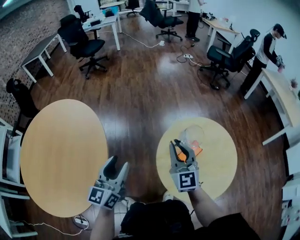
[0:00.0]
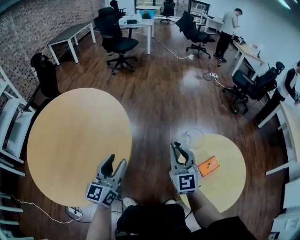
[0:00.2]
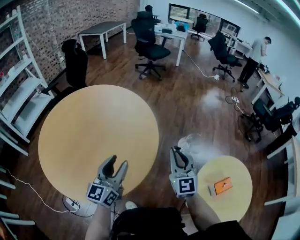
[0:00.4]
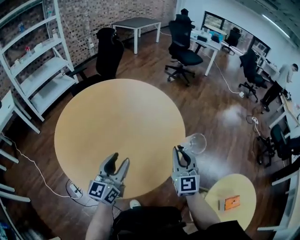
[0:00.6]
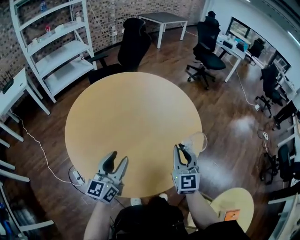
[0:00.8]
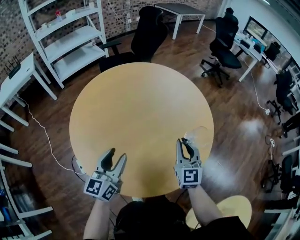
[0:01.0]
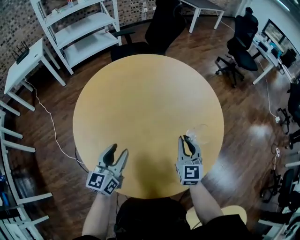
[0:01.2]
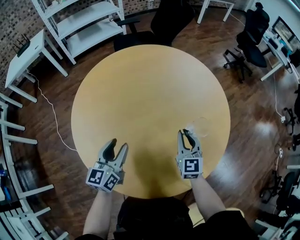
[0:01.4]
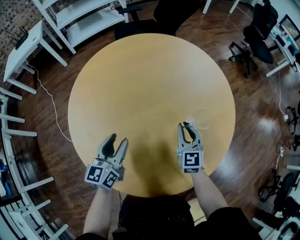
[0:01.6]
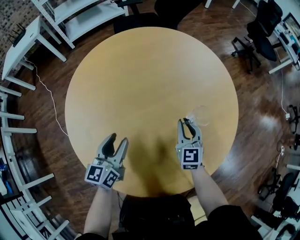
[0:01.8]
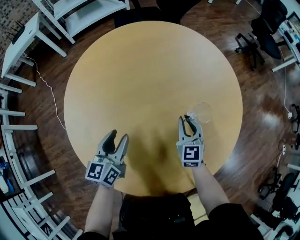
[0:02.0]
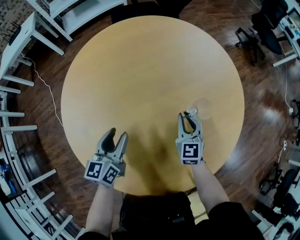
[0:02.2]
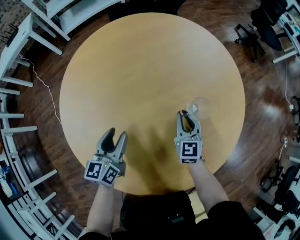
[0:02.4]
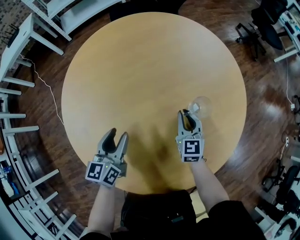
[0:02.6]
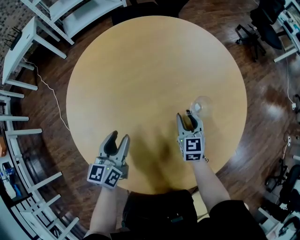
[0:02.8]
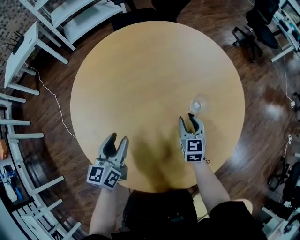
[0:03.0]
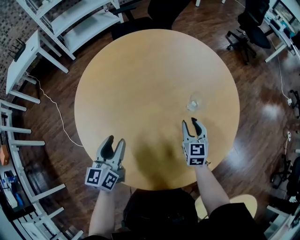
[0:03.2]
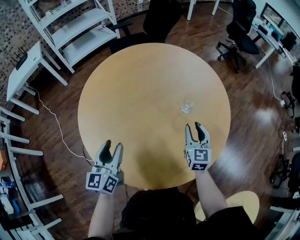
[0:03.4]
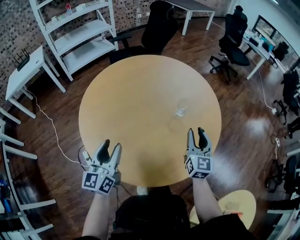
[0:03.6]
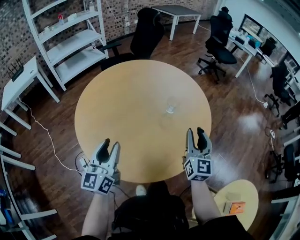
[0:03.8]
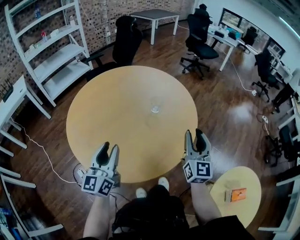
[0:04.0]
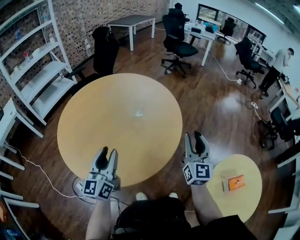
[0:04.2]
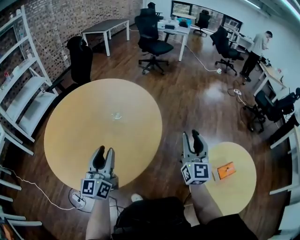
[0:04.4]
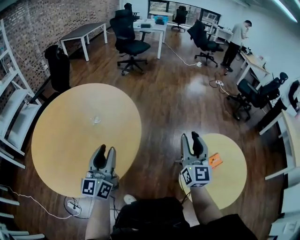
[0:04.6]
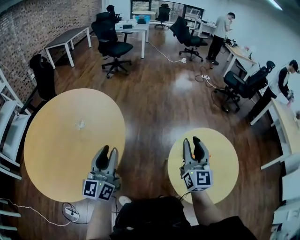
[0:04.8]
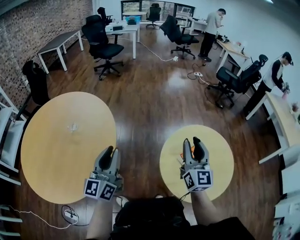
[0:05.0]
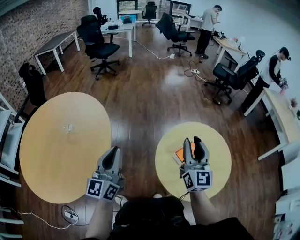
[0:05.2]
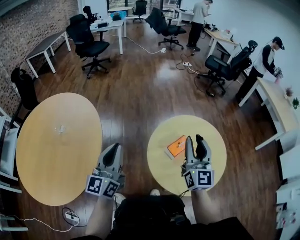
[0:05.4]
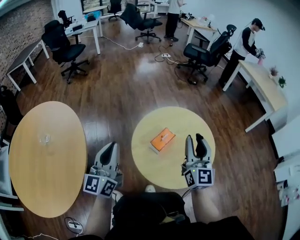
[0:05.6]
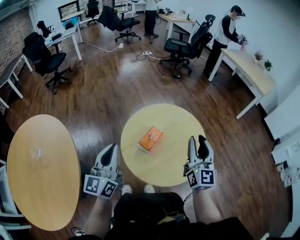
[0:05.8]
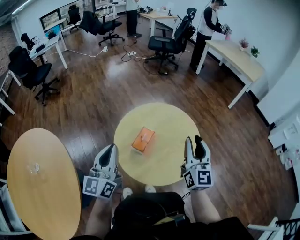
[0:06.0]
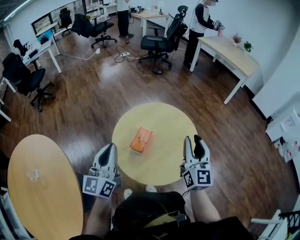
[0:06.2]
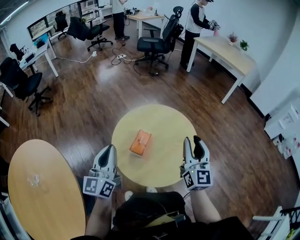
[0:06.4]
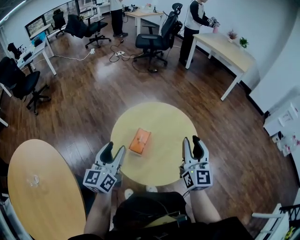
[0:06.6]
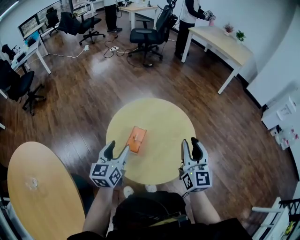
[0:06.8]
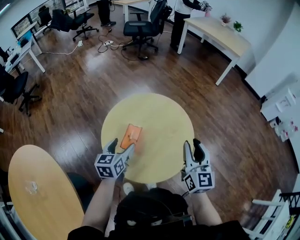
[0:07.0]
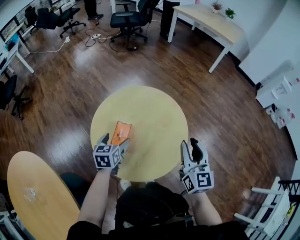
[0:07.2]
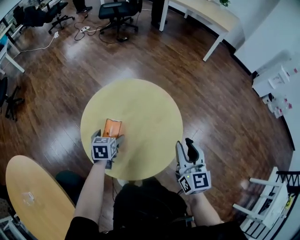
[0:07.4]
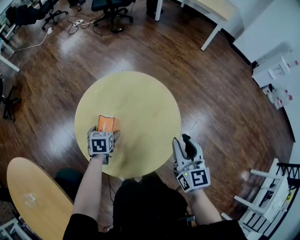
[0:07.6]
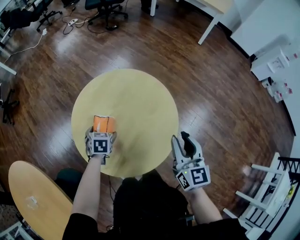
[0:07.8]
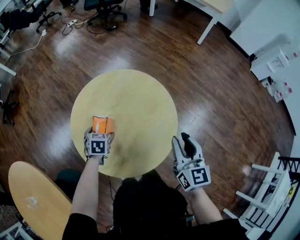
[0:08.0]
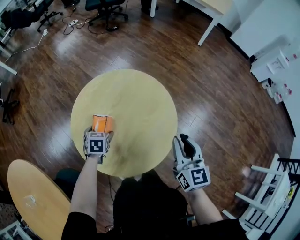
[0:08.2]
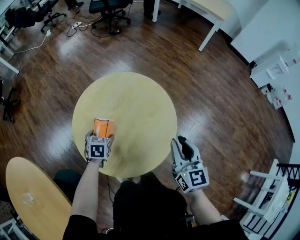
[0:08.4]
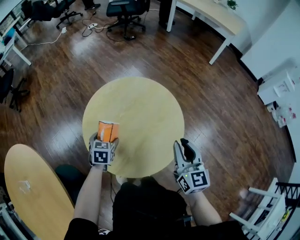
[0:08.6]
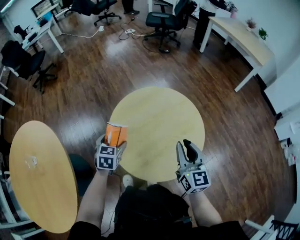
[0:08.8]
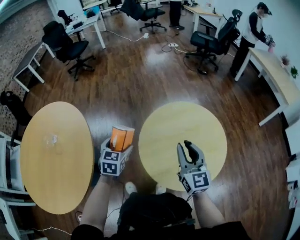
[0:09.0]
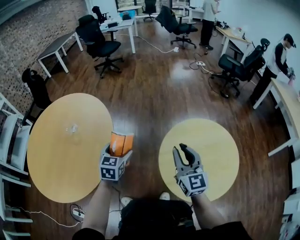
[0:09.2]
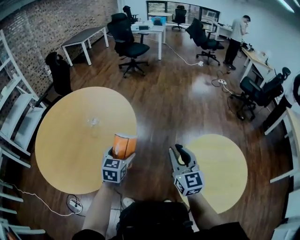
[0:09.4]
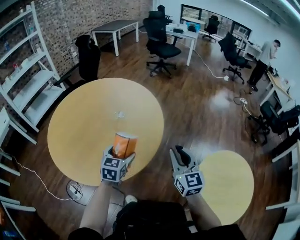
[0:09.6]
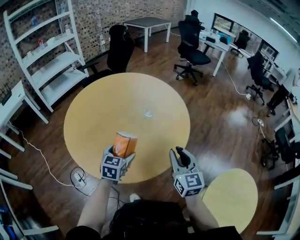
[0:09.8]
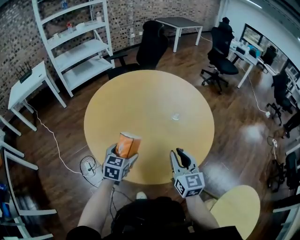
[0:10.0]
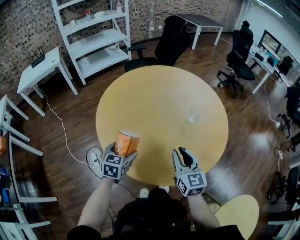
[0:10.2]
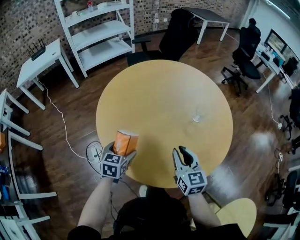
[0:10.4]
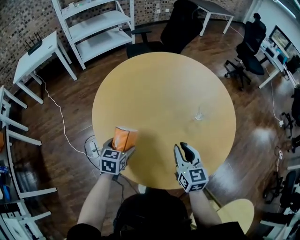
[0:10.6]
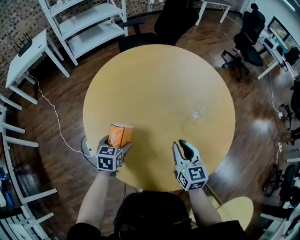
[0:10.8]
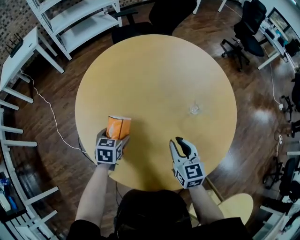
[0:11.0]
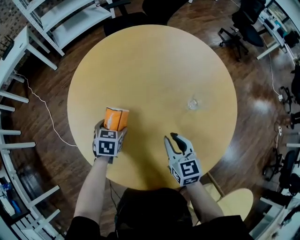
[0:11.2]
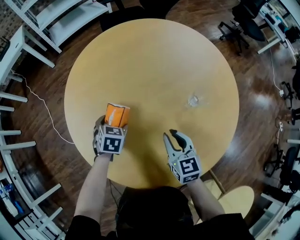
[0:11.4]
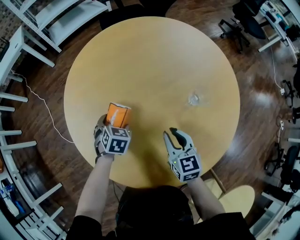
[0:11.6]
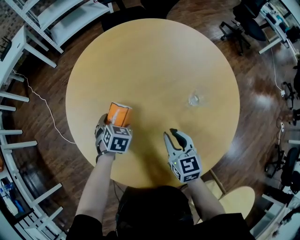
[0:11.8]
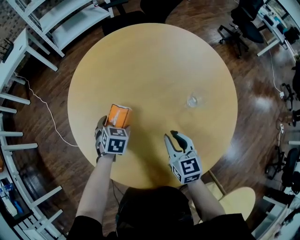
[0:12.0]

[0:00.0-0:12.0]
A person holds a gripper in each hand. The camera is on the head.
0.0 to 1.6 s: Both grippers are carried some 70 cm. The right gripper rotates about 60 degrees. Meanwhile the left gripper rotates about 70 degrees.
1.6 to 3.0 s: The right gripper moves downward, some 5 cm.
3.0 to 4.4 s: The right gripper shifts by about 50 cm, and points its fingers some 40 degrees further upward; the left gripper changes place by roughly 30 cm, and turns by some 40 degrees.
4.4 to 6.0 s: The pair of grippers is taken some 50 cm. The right gripper swivels roughly 50 degrees. Meanwhile the left gripper turns by about 60 degrees.
6.0 to 7.6 s: The right gripper travels downward and to the right by about 15 cm, and turns by about 20 degrees; the left gripper is displaced downward and forward by about 35 cm, angles its fingers downward, by approximately 60 degrees, and opens its fingers.
7.6 to 9.0 s: The left gripper changes place by some 30 cm, and changes its angle by some 30 degrees. The right gripper ends up approximately 20 cm from where it was, and swivels about 40 degrees.
9.0 to 10.4 s: The pair of grippers is taken approximately 70 cm. The left gripper swivels roughly 70 degrees, while the right gripper changes its angle by about 70 degrees.
10.4 to 12.0 s: The left gripper travels forward, downward and to the right by roughly 20 cm, and turns by roughly 20 degrees. The right gripper shifts approximately 15 cm downward and forward.

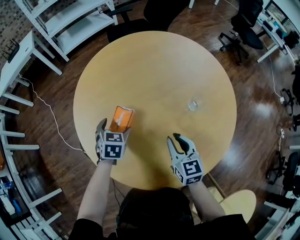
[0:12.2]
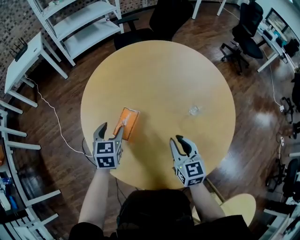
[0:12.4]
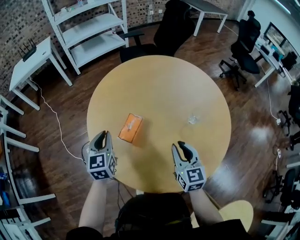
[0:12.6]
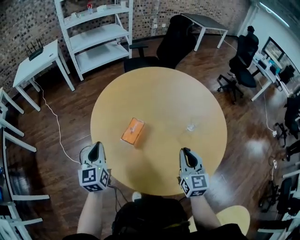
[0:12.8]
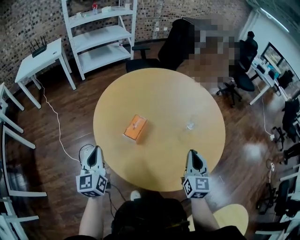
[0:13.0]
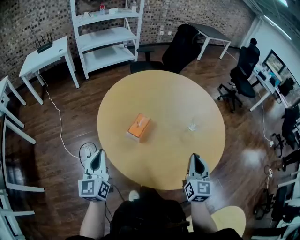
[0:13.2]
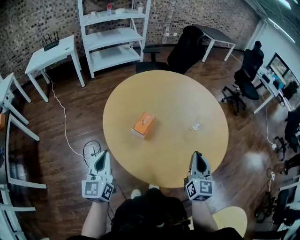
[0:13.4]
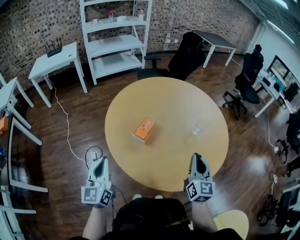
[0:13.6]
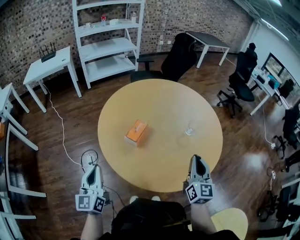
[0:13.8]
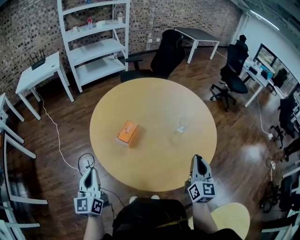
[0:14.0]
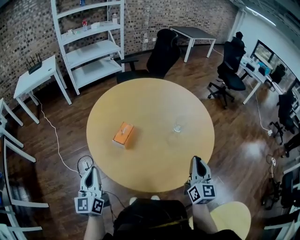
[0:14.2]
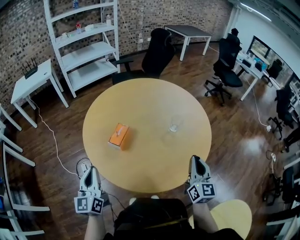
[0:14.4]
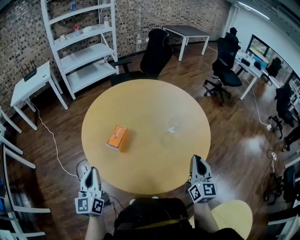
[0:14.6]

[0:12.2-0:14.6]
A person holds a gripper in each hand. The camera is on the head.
12.2 to 13.4 s: The left gripper is displaced backward, upward and to the left by roughly 35 cm, angles its fingers upward, by approximately 50 degrees, and closes up, while the right gripper shifts about 20 cm upward and backward, and changes its angle by about 20 degrees.
13.4 to 14.6 s: The left gripper heads to the right, covering approximately 5 cm; the right gripper goes about 15 cm to the right.

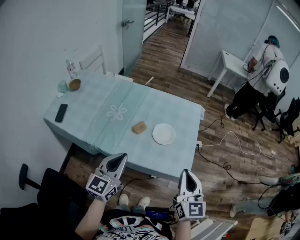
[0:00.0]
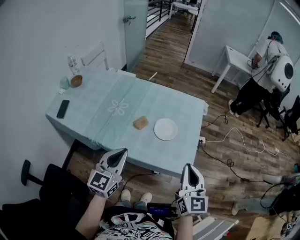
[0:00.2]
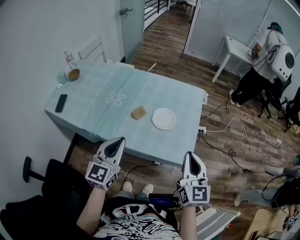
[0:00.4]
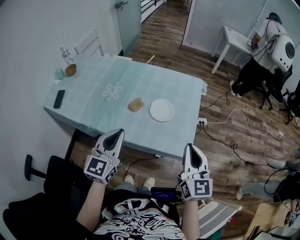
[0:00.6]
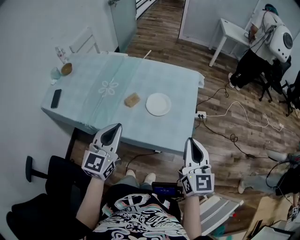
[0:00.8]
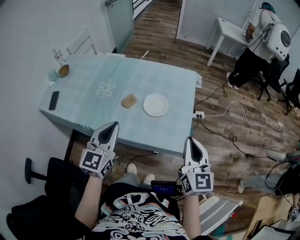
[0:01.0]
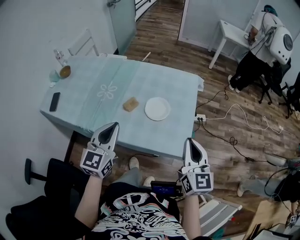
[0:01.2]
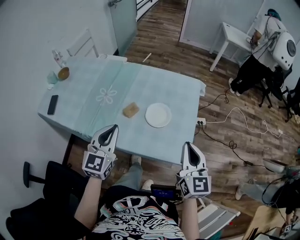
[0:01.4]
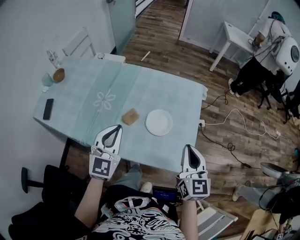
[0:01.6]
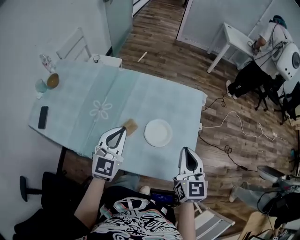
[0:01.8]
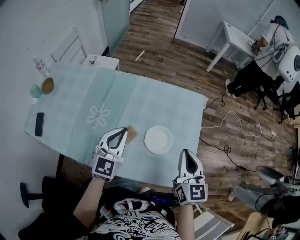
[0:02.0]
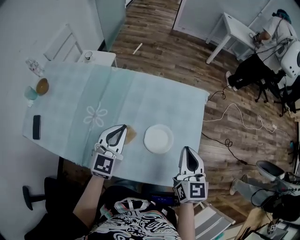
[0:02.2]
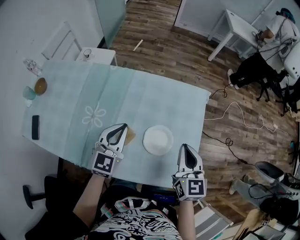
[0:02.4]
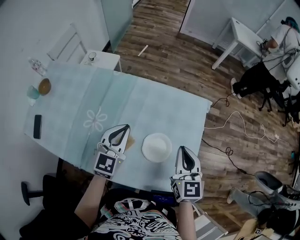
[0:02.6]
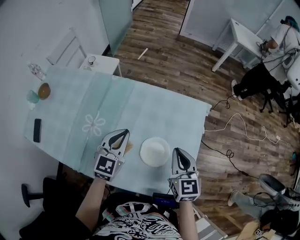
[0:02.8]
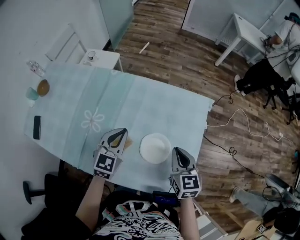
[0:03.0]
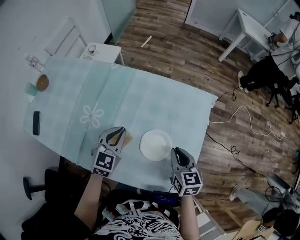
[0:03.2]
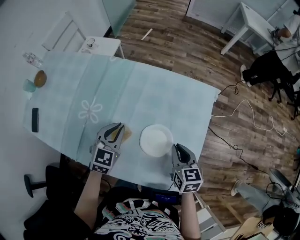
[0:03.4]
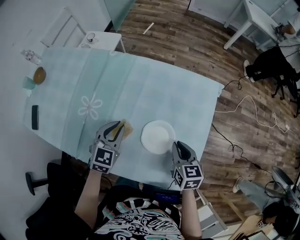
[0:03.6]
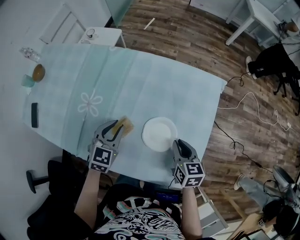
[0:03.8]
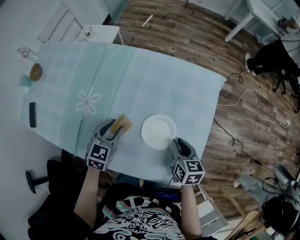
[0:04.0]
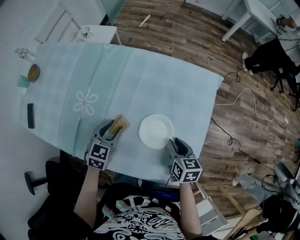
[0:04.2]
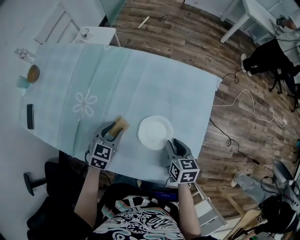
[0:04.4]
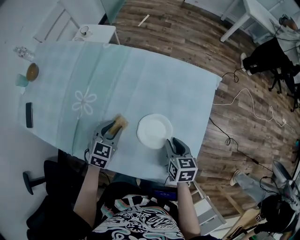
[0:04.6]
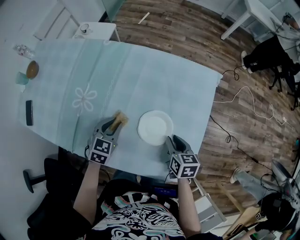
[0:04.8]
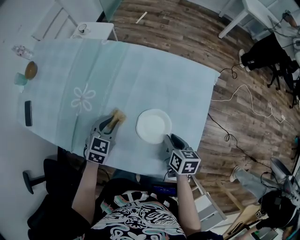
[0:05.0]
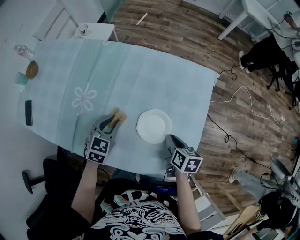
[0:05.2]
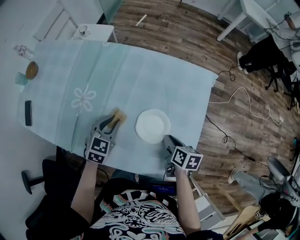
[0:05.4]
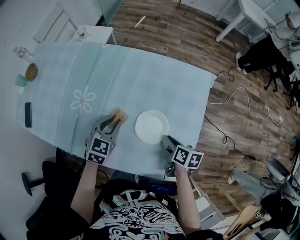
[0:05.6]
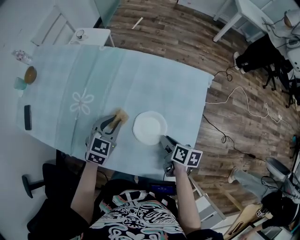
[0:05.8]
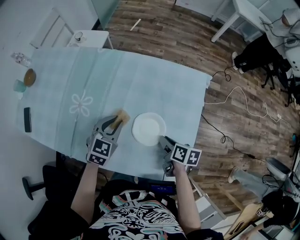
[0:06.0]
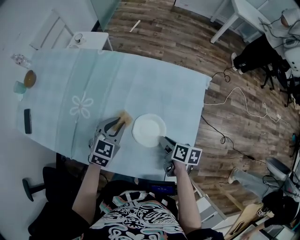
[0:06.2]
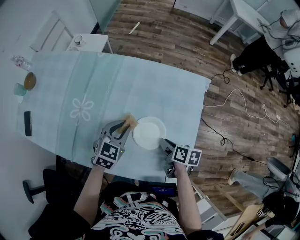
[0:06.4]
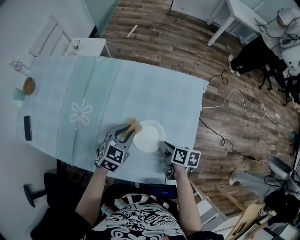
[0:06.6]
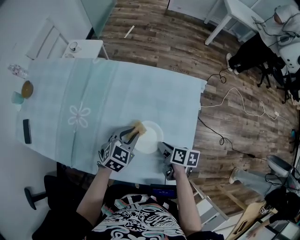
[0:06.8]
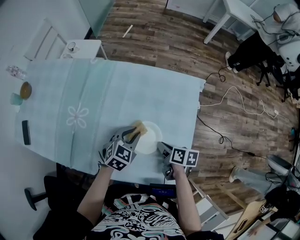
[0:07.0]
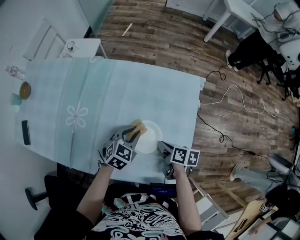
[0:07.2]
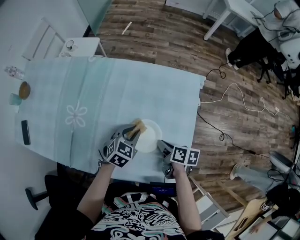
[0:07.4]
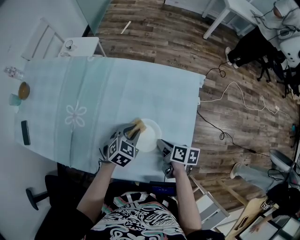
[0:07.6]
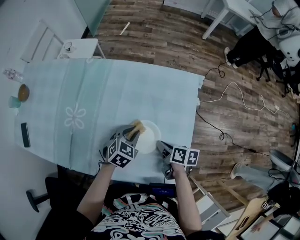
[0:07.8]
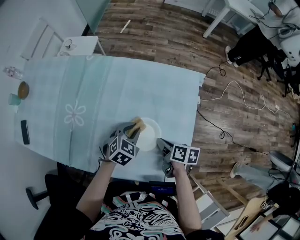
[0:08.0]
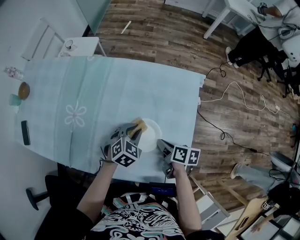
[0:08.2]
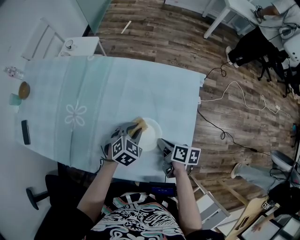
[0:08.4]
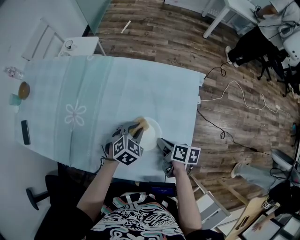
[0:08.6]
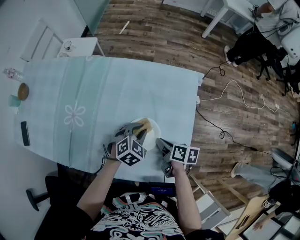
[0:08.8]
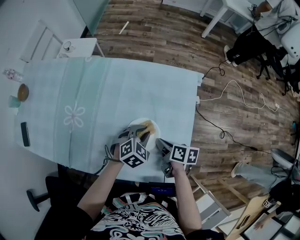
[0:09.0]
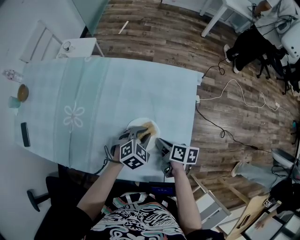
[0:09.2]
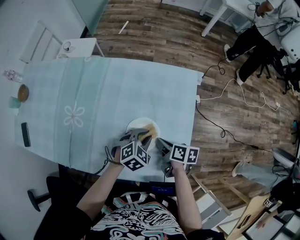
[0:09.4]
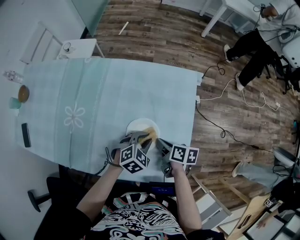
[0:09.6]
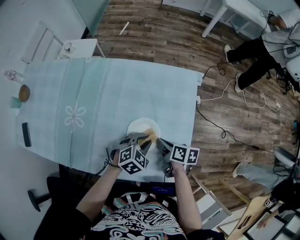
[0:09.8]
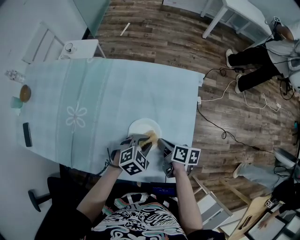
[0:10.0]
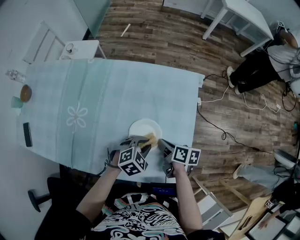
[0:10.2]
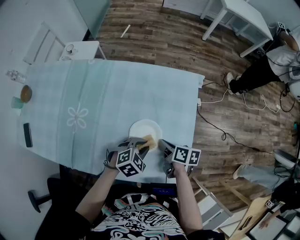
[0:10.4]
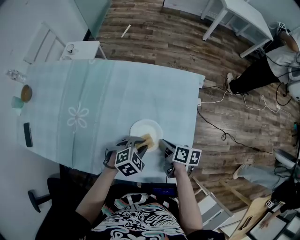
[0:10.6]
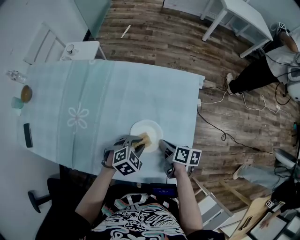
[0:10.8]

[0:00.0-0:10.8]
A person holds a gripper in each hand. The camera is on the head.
0.0 to 1.6 s: Both grippers move forward, approximately 10 cm. The left gripper rotates about 20 degrees.
1.6 to 3.0 s: The two grippers go roughly 20 cm forward and downward.
3.0 to 4.6 s: The right gripper moves downward, about 10 cm, and turns by approximately 20 degrees, while the left gripper moves downward and backward, roughly 15 cm, swivels about 20 degrees, and opens its fingers.
4.6 to 6.2 s: The left gripper ends up about 5 cm from where it was; the right gripper changes its angle by approximately 30 degrees.
6.2 to 7.8 s: The left gripper goes some 10 cm to the right and downward.
7.8 to 9.2 s: The left gripper shifts roughly 5 cm to the right.
9.2 to 10.8 s: The left gripper shifts by some 5 cm.
